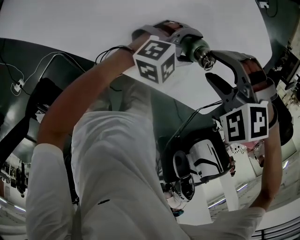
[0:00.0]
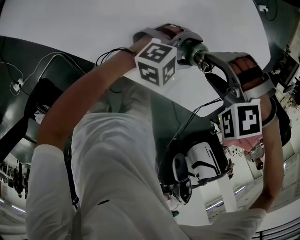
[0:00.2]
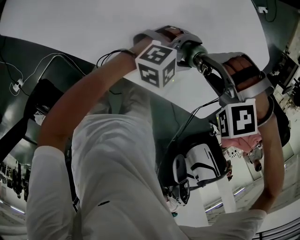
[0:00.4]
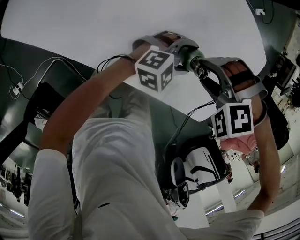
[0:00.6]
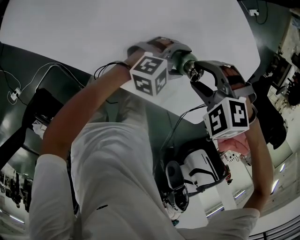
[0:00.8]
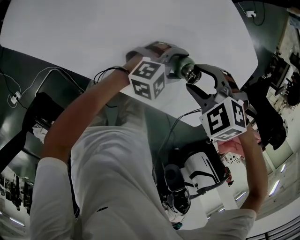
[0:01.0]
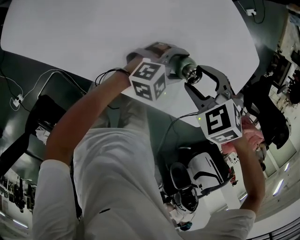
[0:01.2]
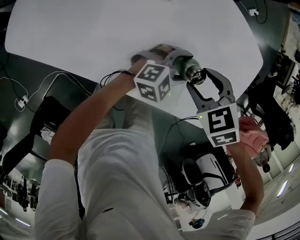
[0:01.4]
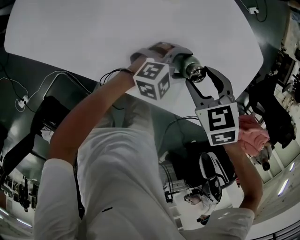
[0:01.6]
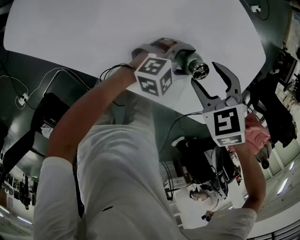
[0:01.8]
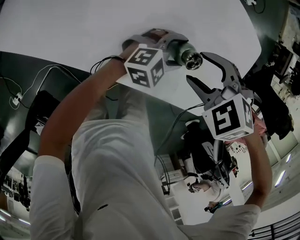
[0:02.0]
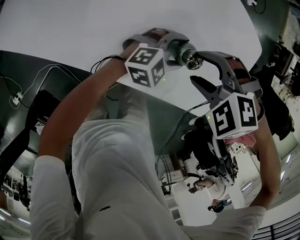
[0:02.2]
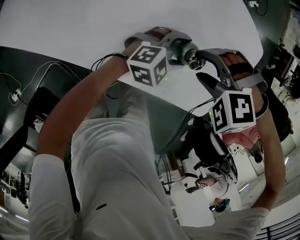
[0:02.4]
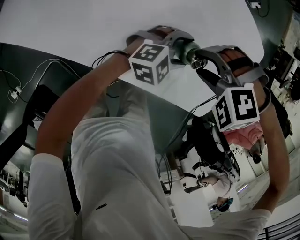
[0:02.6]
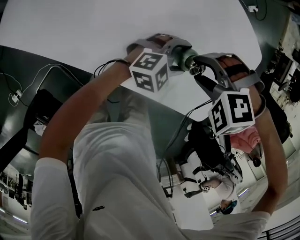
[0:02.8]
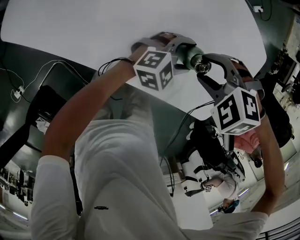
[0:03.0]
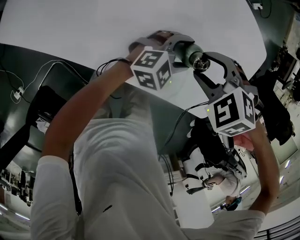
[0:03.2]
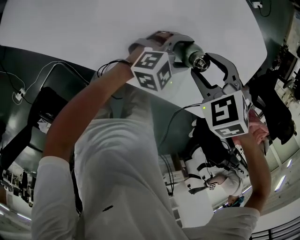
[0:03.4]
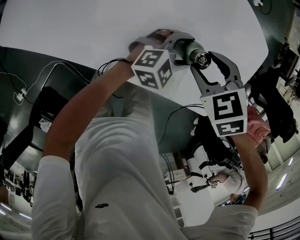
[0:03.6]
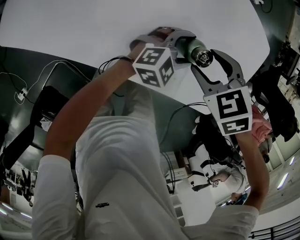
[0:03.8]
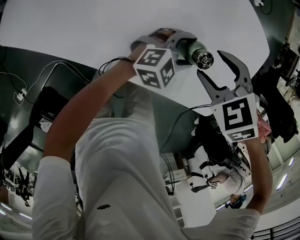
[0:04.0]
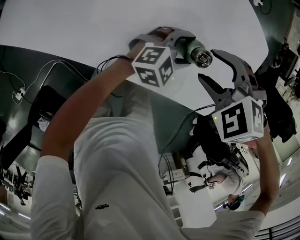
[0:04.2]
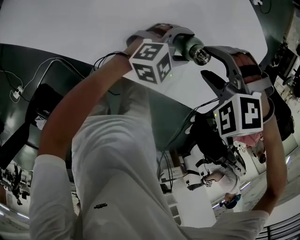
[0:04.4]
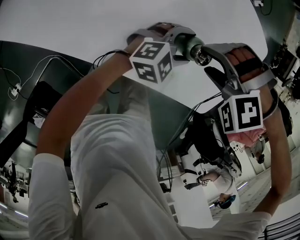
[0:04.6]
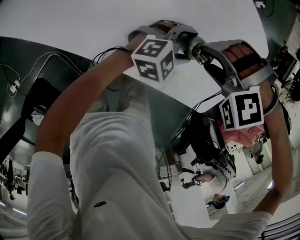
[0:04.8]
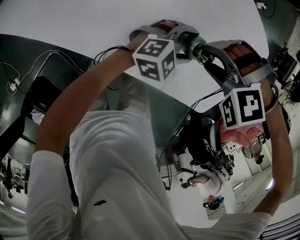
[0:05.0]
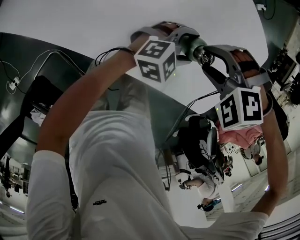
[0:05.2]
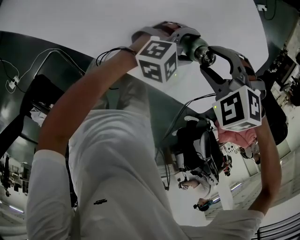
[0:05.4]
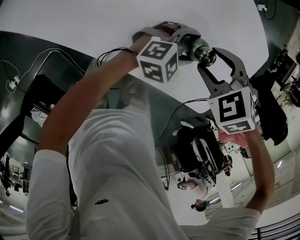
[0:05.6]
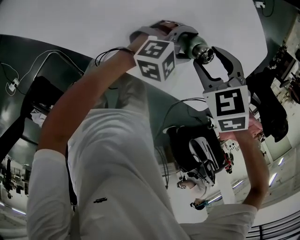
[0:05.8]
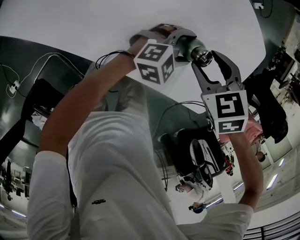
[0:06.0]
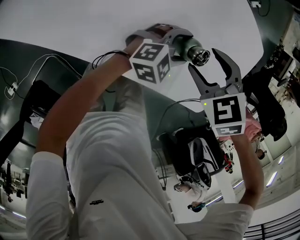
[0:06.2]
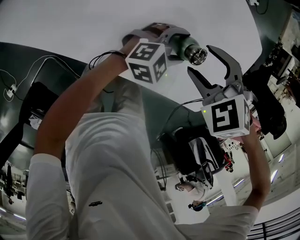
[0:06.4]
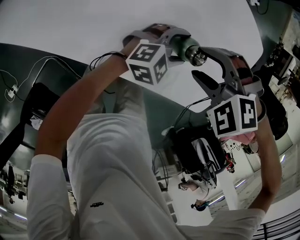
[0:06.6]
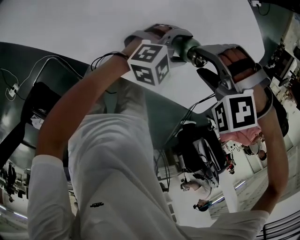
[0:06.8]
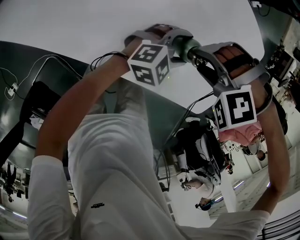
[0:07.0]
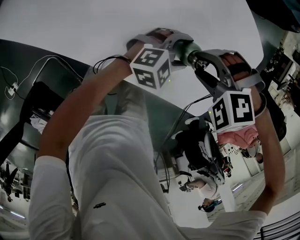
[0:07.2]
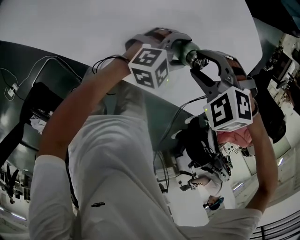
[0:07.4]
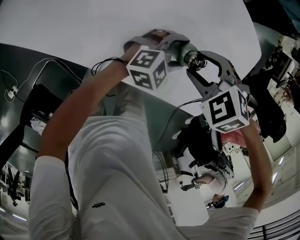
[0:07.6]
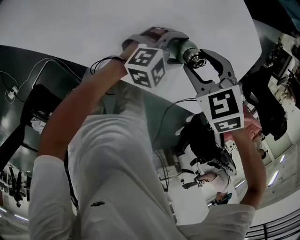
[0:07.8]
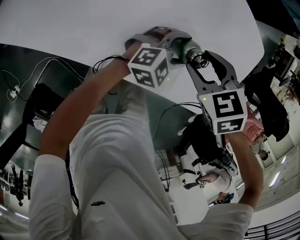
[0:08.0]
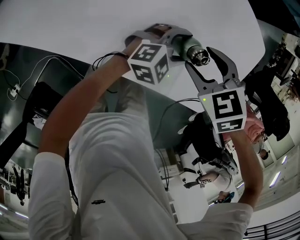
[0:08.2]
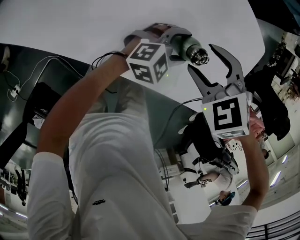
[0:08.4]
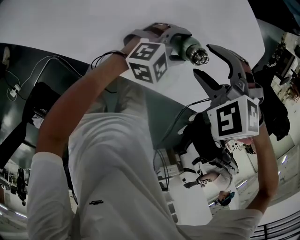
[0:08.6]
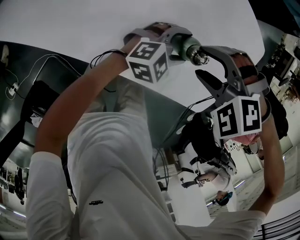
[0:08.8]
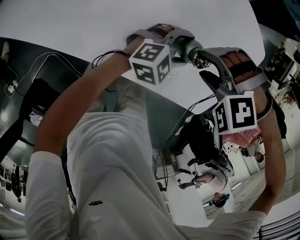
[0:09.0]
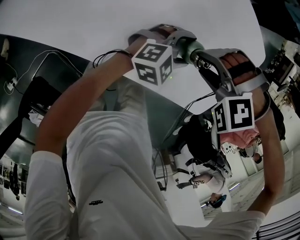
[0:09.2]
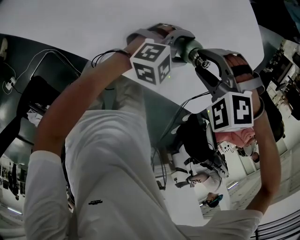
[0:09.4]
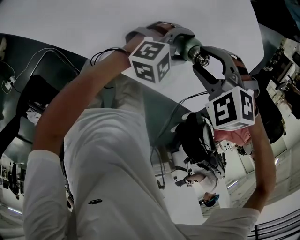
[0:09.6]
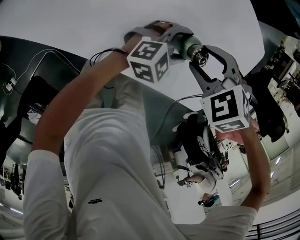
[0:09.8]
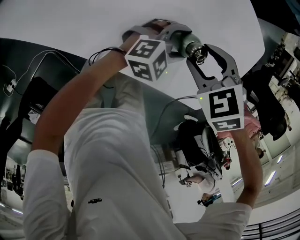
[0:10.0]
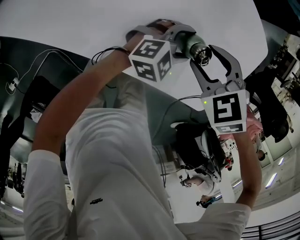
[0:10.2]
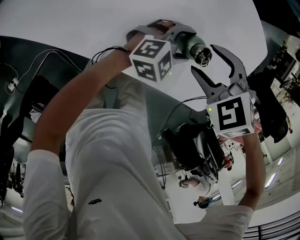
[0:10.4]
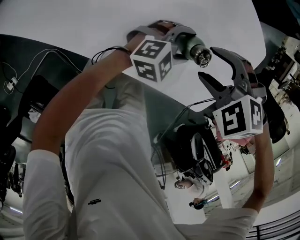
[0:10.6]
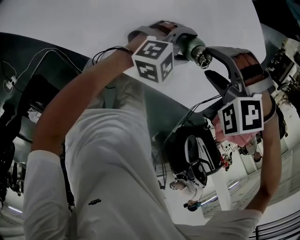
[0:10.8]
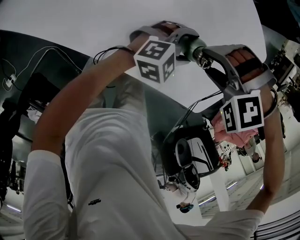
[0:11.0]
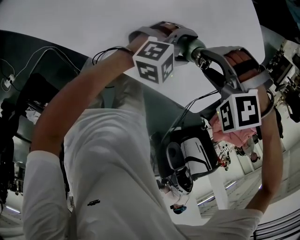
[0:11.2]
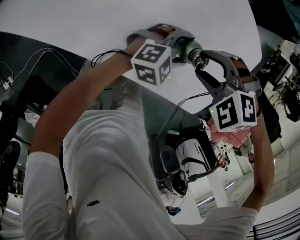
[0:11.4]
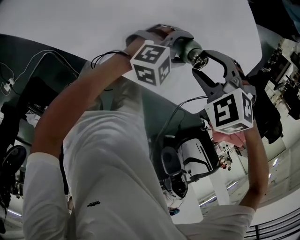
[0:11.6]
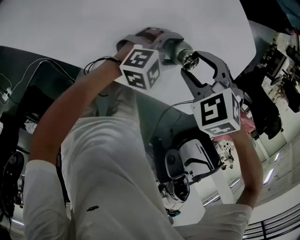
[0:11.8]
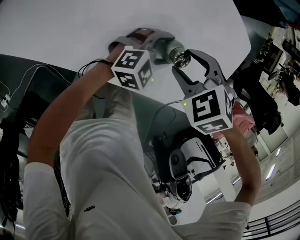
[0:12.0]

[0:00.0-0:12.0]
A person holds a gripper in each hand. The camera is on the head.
0:00.0 to 0:01.6: The right gripper rotates around the line of its fingers by approximately 60 degrees, clockwise from behind.
0:01.6 to 0:03.0: The right gripper rolls counterclockwise, seen from behind, by approximately 40 degrees.
0:04.4 to 0:06.0: The right gripper twists approximately 60 degrees clockwise, seen from behind.
0:06.0 to 0:07.6: The right gripper turns by about 30 degrees.
0:07.6 to 0:09.0: The right gripper rolls counterclockwise, seen from behind, by some 40 degrees.
0:09.0 to 0:10.4: The right gripper rolls clockwise, seen from behind, by approximately 50 degrees.

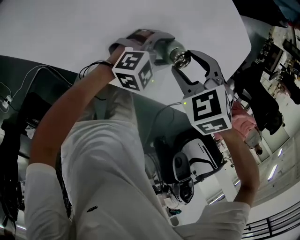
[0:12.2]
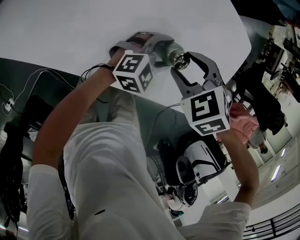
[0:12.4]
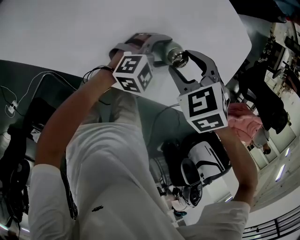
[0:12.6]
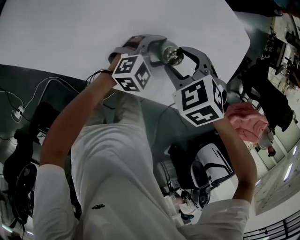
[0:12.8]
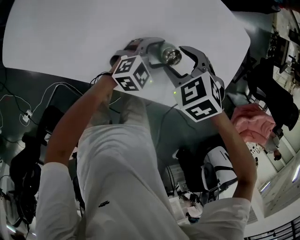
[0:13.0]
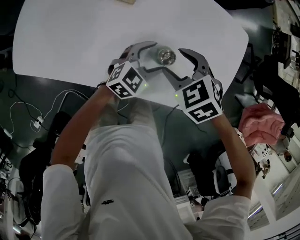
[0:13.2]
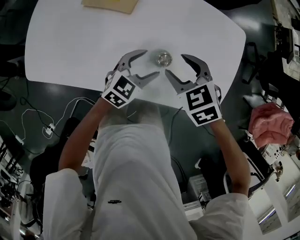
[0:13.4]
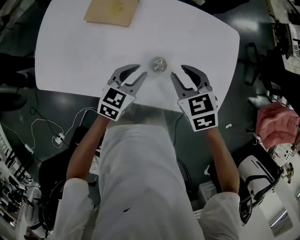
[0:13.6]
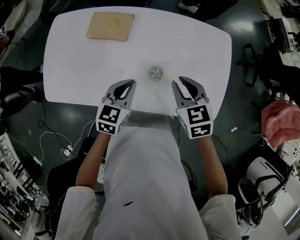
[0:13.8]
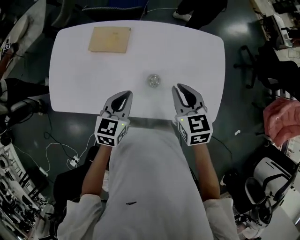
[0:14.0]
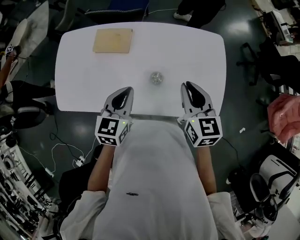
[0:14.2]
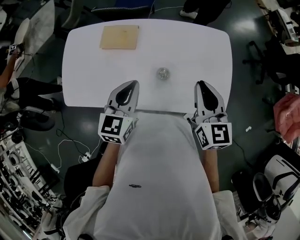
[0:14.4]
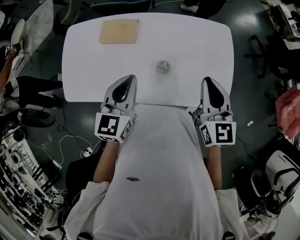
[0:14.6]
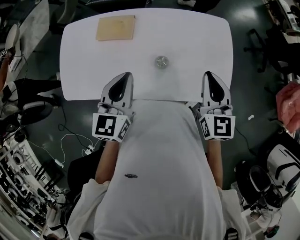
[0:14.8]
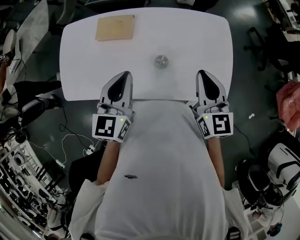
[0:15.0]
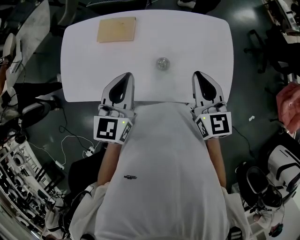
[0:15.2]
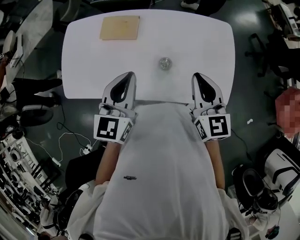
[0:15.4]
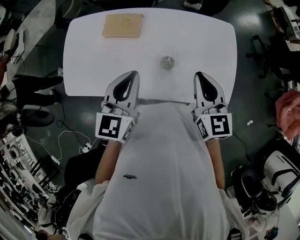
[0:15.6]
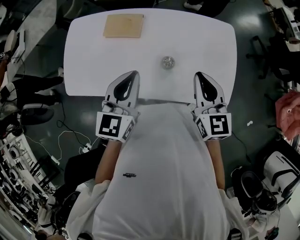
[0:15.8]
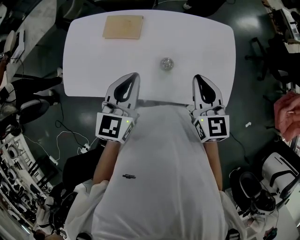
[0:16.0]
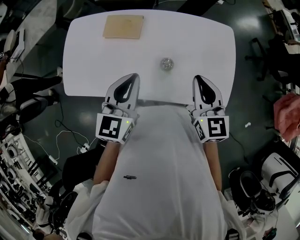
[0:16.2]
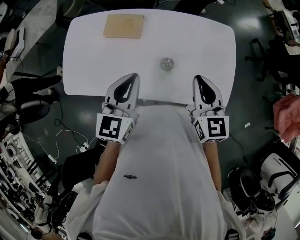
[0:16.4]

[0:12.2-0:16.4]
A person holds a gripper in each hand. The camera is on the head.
0:12.2 to 0:13.6: Both grippers move upward, roughly 10 cm. The right gripper changes its angle by about 50 degrees, and closes its fingers. The left gripper turns by approximately 30 degrees, and closes.
0:13.6 to 0:15.0: The right gripper shifts roughly 15 cm upward and to the right, points its fingers approximately 40 degrees further upward, and closes up. The left gripper shifts approximately 20 cm upward, changes its angle by roughly 20 degrees, and closes.
0:15.0 to 0:16.4: The grippers stay close to where they were, moving slightly.

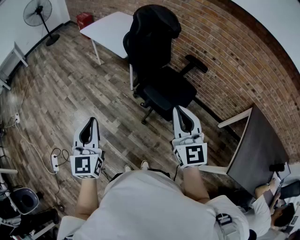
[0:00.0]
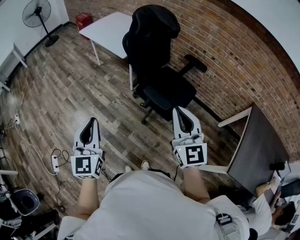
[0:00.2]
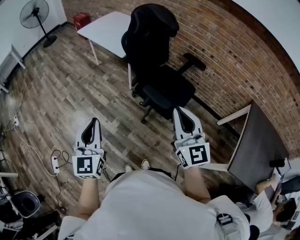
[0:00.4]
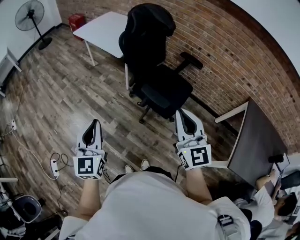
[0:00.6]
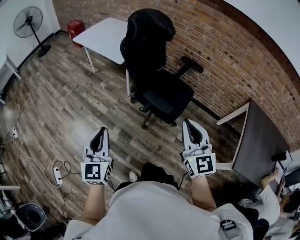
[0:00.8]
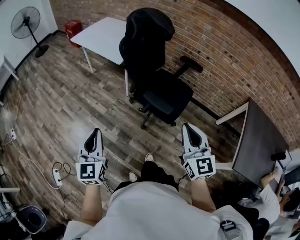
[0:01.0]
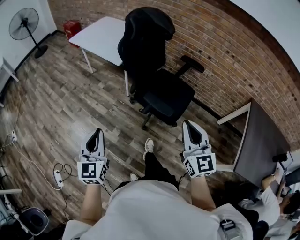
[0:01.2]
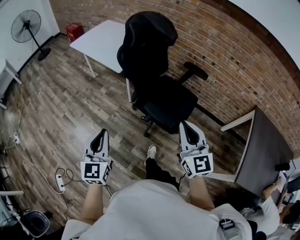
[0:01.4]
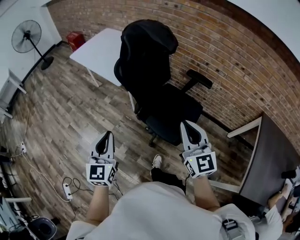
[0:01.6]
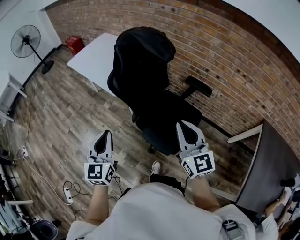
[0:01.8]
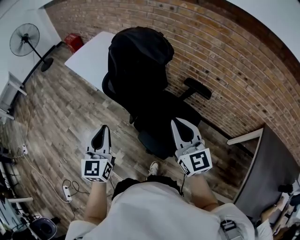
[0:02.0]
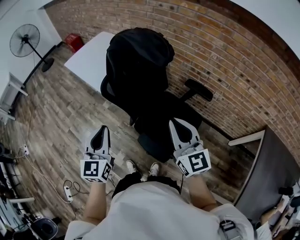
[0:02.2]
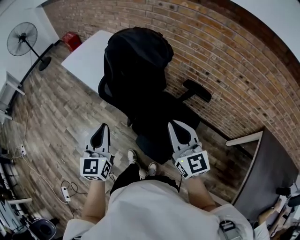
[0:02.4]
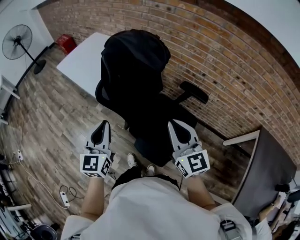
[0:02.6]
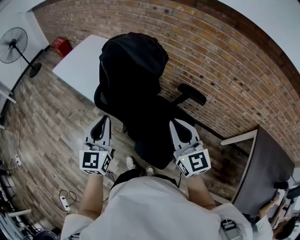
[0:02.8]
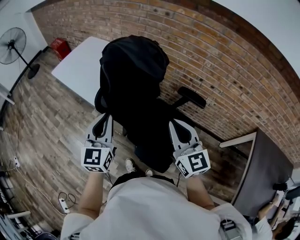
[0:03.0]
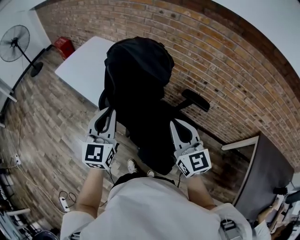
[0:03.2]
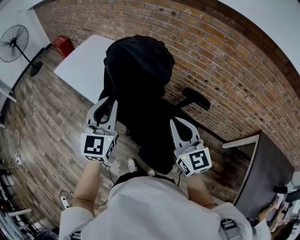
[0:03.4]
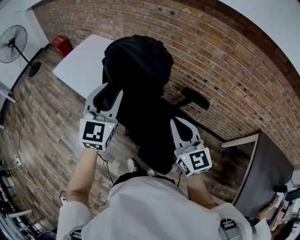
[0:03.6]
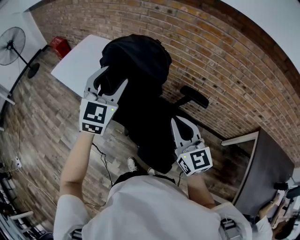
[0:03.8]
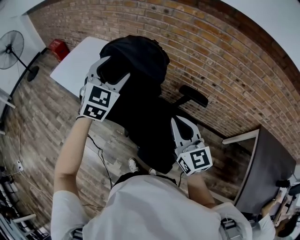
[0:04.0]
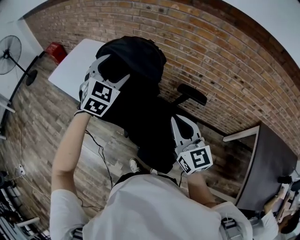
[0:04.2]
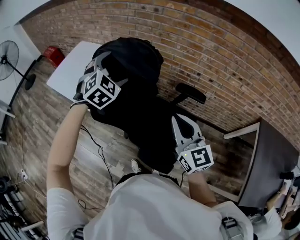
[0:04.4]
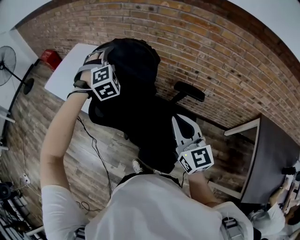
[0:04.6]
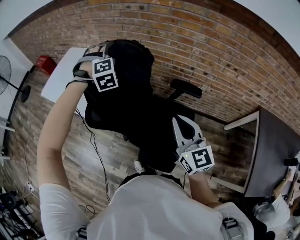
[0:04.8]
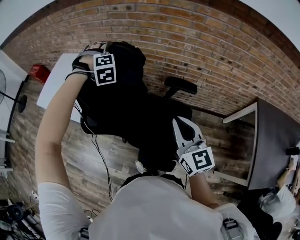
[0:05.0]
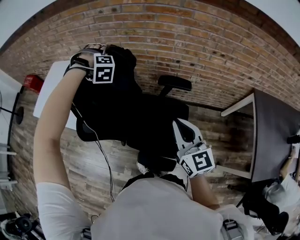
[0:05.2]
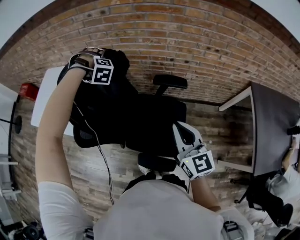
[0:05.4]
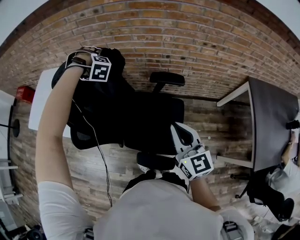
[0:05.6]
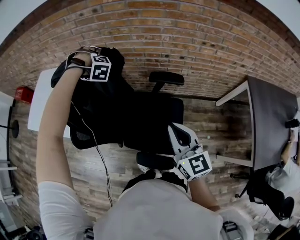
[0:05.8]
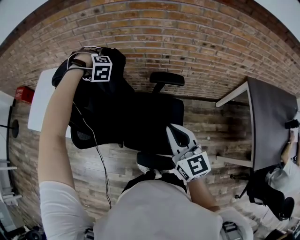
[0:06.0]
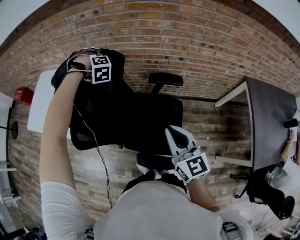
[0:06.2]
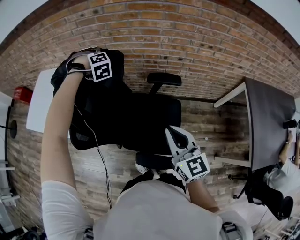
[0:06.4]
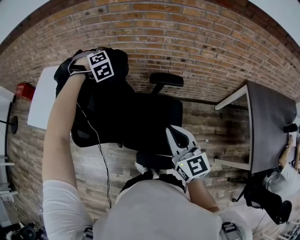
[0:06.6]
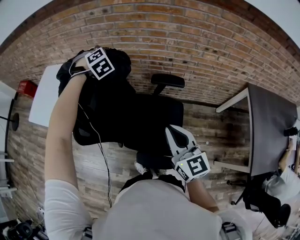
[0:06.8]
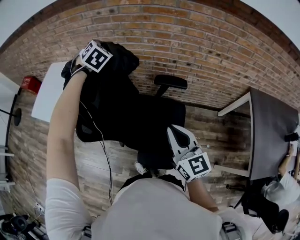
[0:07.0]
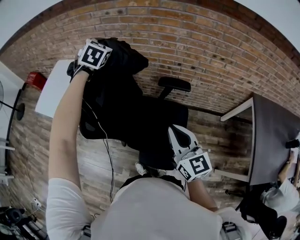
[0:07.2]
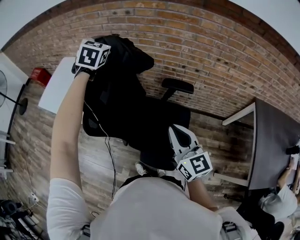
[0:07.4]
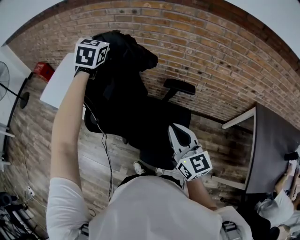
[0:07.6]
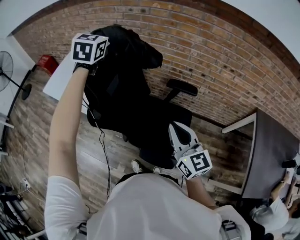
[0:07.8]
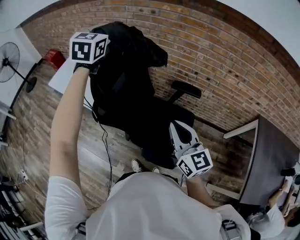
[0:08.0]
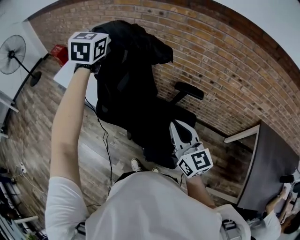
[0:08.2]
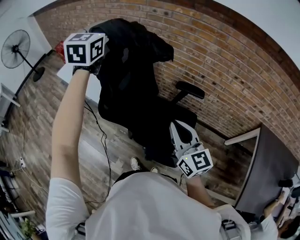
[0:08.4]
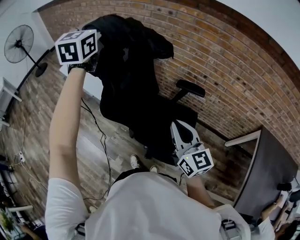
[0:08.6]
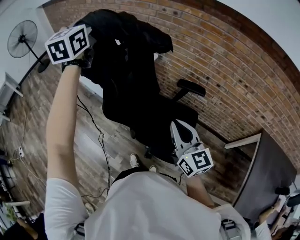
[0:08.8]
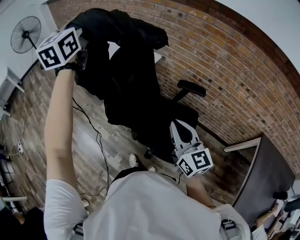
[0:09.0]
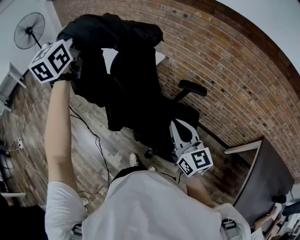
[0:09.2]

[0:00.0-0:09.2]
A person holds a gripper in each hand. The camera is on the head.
0:00.0 to 0:01.6: Both grippers travel together forward, about 20 cm.
0:01.6 to 0:03.0: The two grippers go about 20 cm forward.
0:03.0 to 0:04.6: The left gripper goes approximately 25 cm forward, twists approximately 70 degrees clockwise, seen from behind, and opens.
0:04.6 to 0:06.2: The right gripper moves roughly 5 cm, while the left gripper is displaced to the right, forward and downward by approximately 20 cm, and swivels some 40 degrees.
0:06.2 to 0:07.6: The left gripper moves upward, some 20 cm, twists some 70 degrees counterclockwise, seen from behind, and closes its fingers.
0:07.6 to 0:09.2: The left gripper goes about 35 cm to the left, backward and upward, and rotates roughly 40 degrees. Meanwhile the right gripper travels to the left by about 5 cm.
